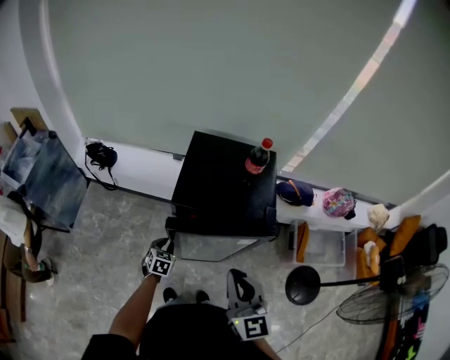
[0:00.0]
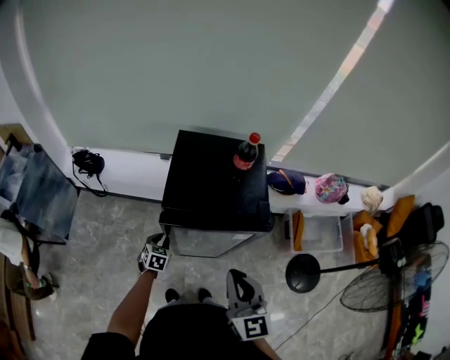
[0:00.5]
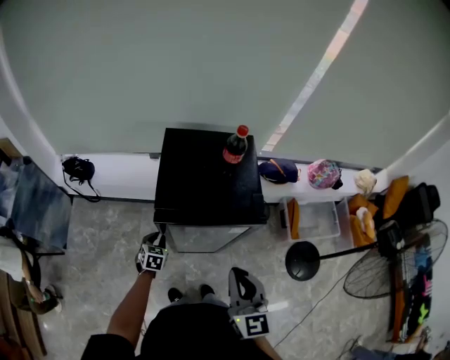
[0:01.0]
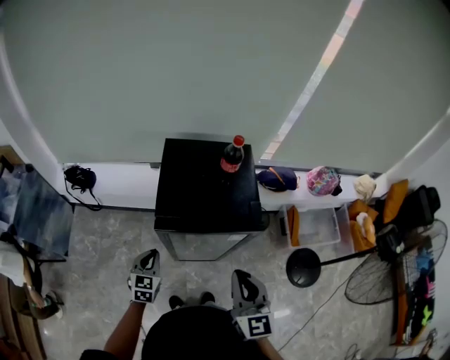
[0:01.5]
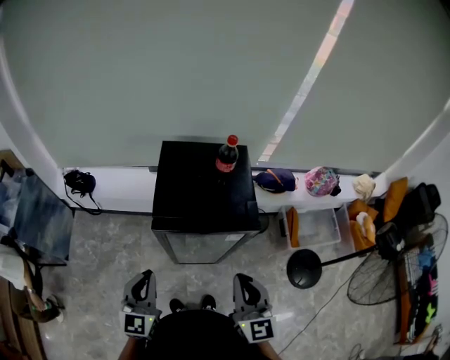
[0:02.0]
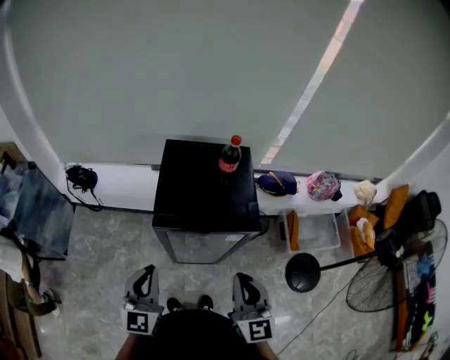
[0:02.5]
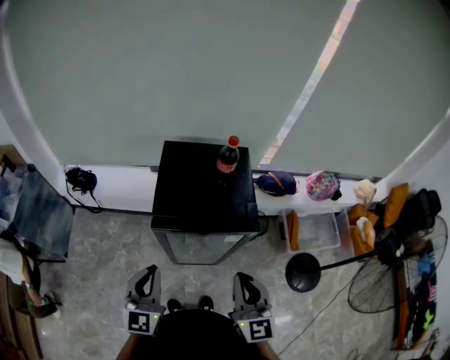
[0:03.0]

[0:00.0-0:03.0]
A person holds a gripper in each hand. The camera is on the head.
0:00.0 to 0:01.5: The left gripper travels upward by roughly 15 cm.
0:01.5 to 0:03.0: The left gripper moves upward and backward, approximately 20 cm, and changes its angle by about 20 degrees.

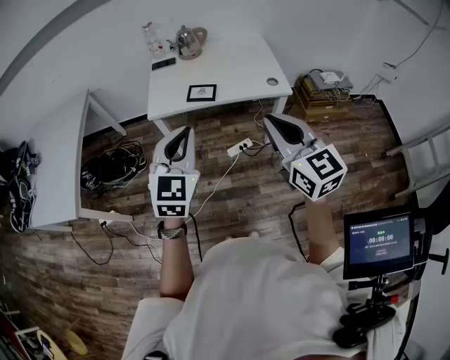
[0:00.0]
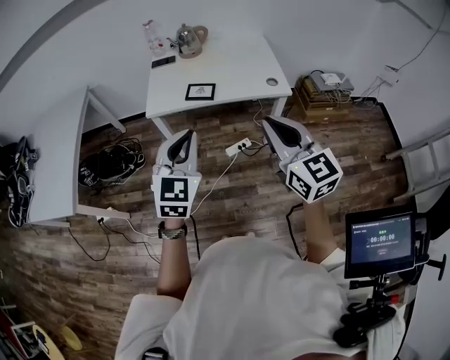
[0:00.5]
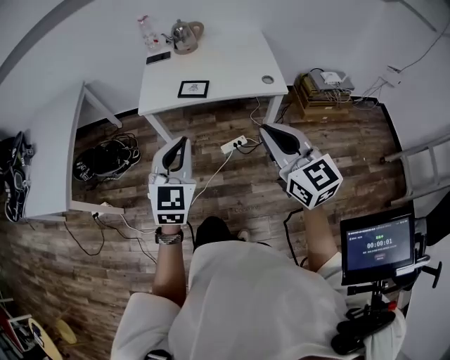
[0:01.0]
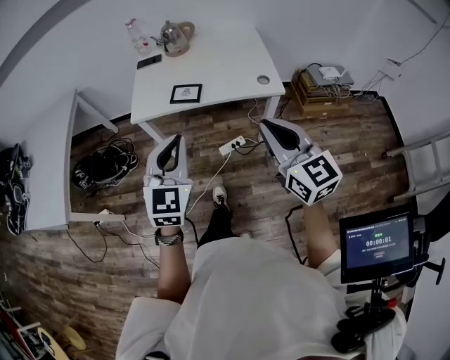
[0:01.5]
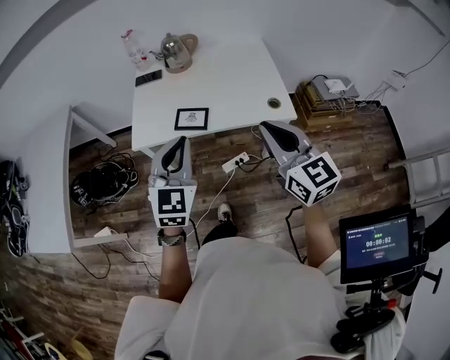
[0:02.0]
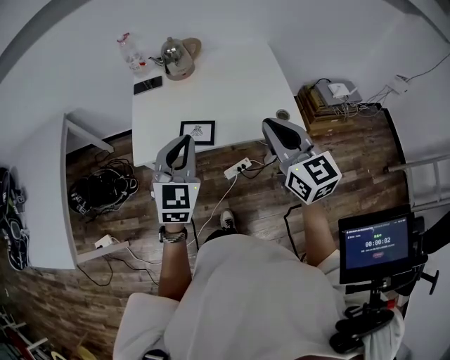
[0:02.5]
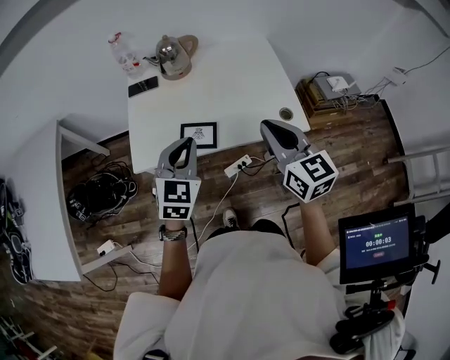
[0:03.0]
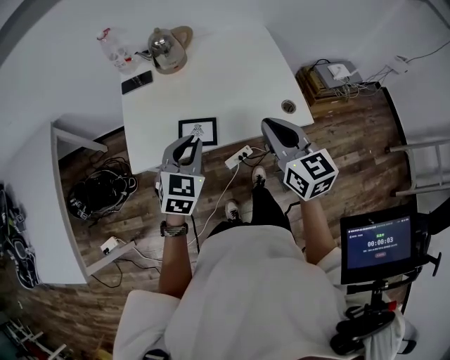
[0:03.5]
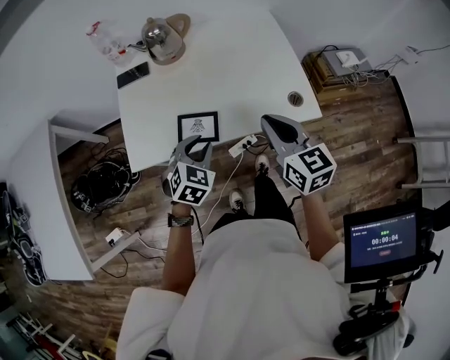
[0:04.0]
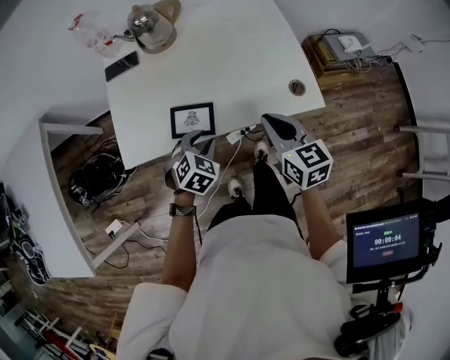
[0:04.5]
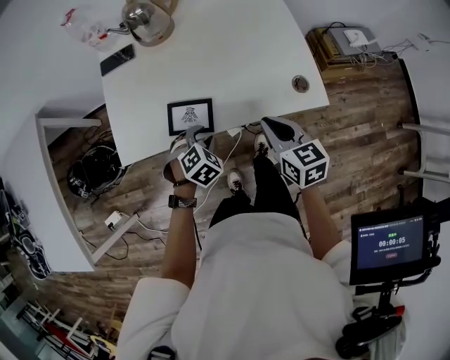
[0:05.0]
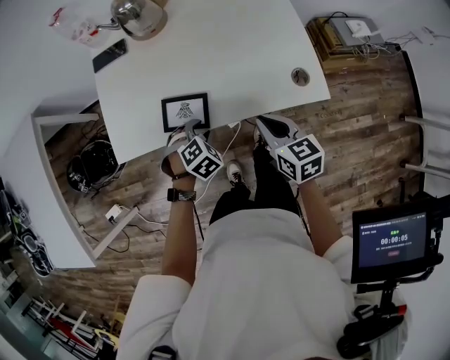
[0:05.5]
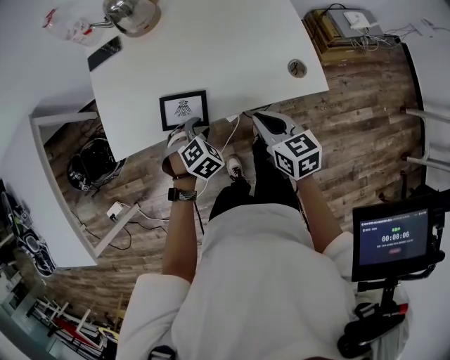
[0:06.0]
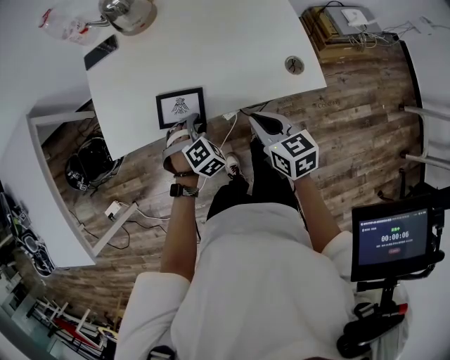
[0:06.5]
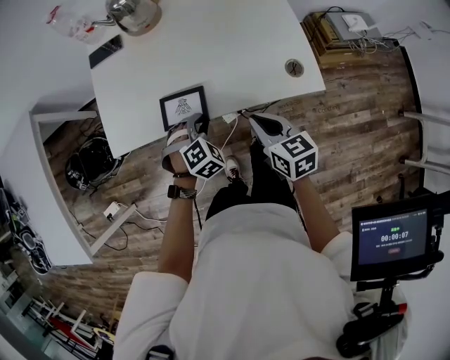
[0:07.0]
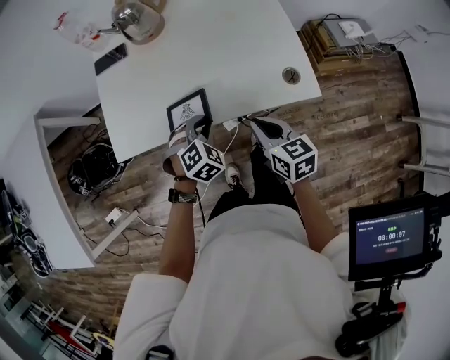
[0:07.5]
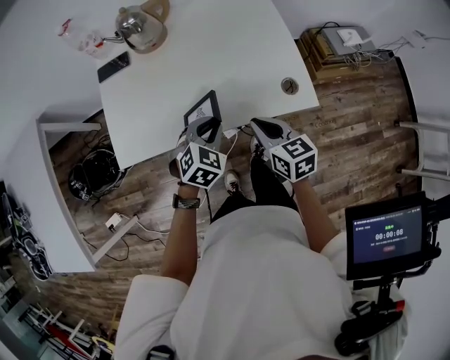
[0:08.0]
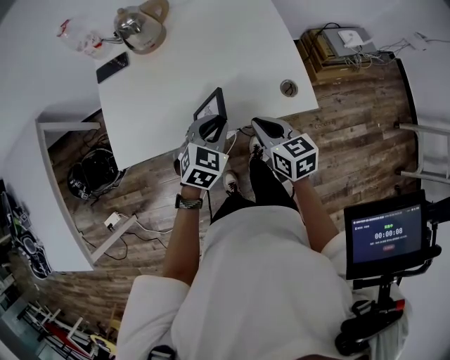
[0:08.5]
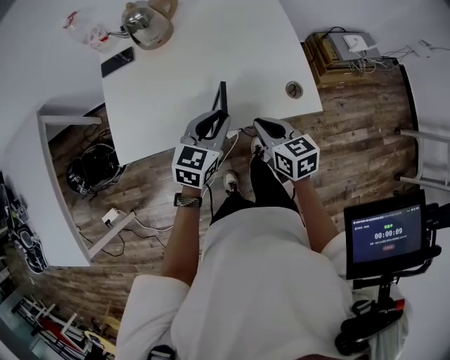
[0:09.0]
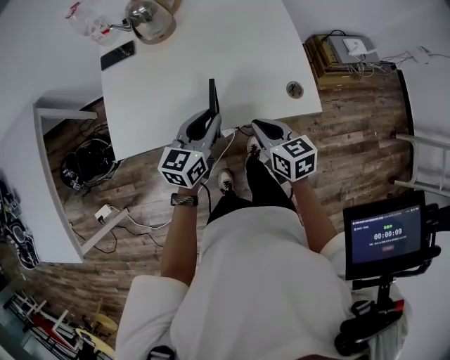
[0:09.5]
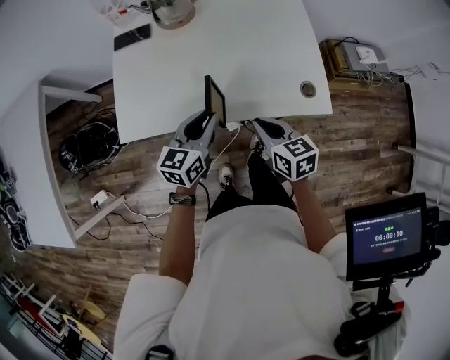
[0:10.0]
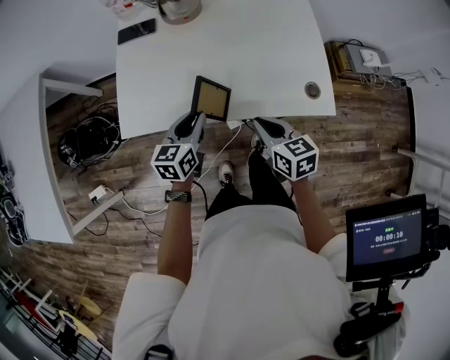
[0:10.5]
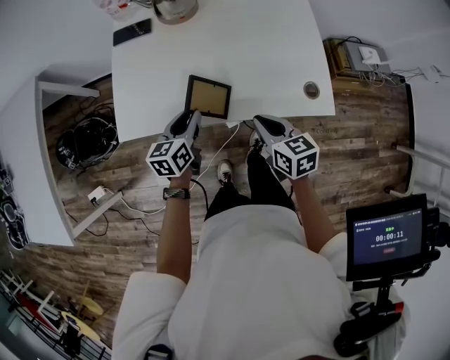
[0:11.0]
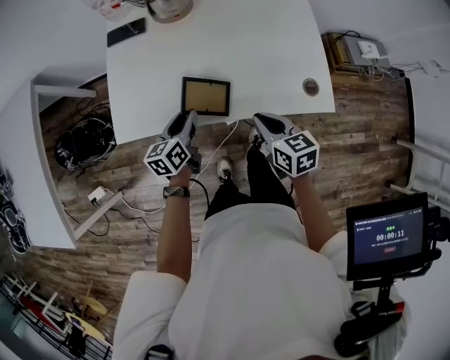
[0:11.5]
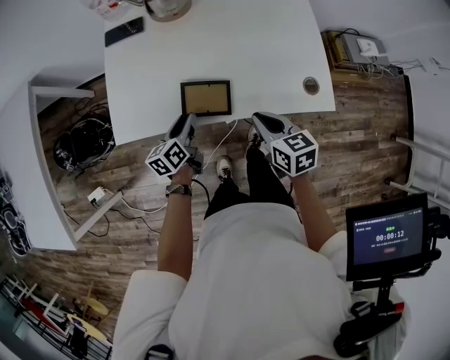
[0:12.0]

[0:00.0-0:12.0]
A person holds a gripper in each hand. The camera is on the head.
0:00.0 to 0:02.0: The two grippers go about 20 cm forward.
0:02.0 to 0:04.0: The right gripper travels forward and downward by roughly 20 cm; the left gripper heads downward and forward, covering about 25 cm, tips its fingers downward by some 30 degrees, and opens.
0:04.0 to 0:06.0: Both grippers travel together downward, some 15 cm. The right gripper rotates about 20 degrees, while the left gripper turns by about 30 degrees.
0:06.0 to 0:08.0: The left gripper moves upward and to the right, about 10 cm, and changes its angle by approximately 20 degrees.
0:08.0 to 0:10.0: The left gripper changes place by approximately 5 cm, and points its fingers roughly 30 degrees further upward.
0:10.0 to 0:12.0: The left gripper heads downward and to the left, covering approximately 15 cm, and turns by approximately 30 degrees.

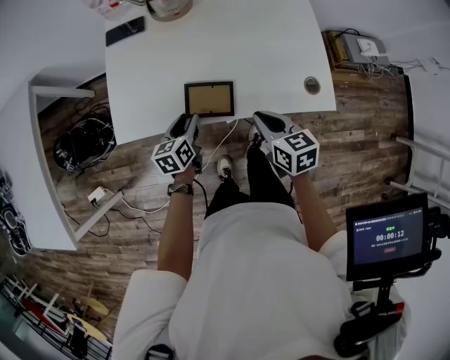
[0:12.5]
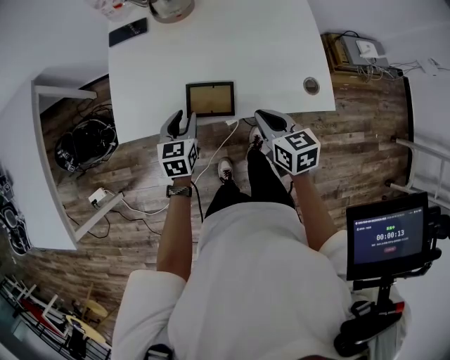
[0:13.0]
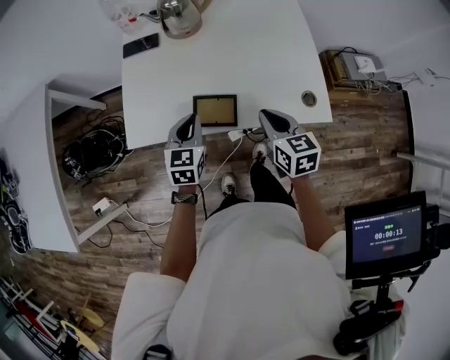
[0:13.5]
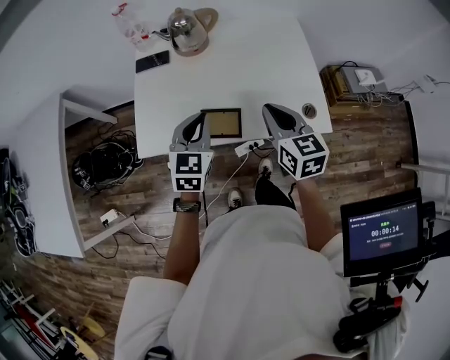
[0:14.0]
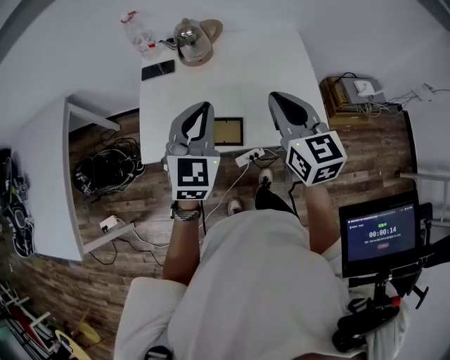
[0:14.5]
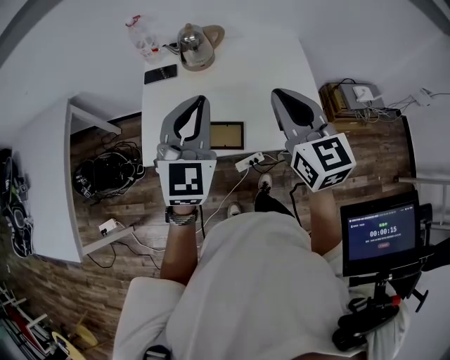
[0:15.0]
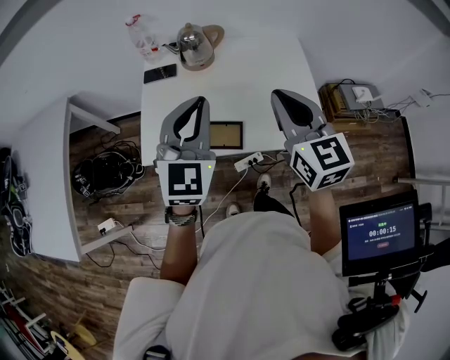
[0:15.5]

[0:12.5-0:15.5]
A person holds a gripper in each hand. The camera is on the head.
0:12.5 to 0:14.0: The right gripper moves upward and forward, roughly 15 cm. Meanwhile the left gripper goes about 20 cm upward, turns by roughly 40 degrees, and closes.
0:14.0 to 0:15.5: The two grippers go about 15 cm upward. The left gripper swivels some 20 degrees.

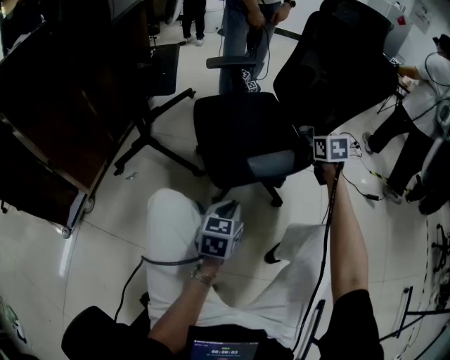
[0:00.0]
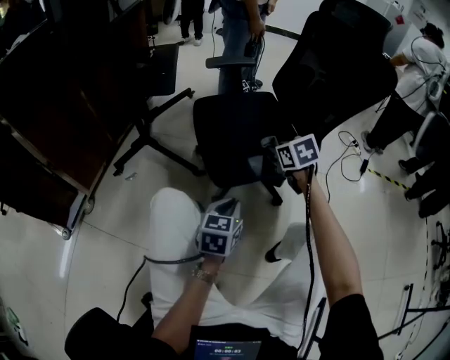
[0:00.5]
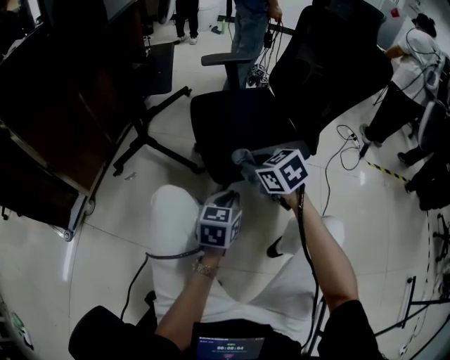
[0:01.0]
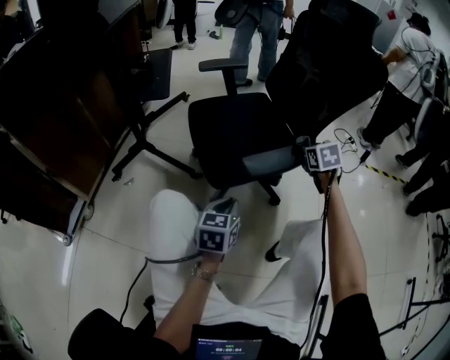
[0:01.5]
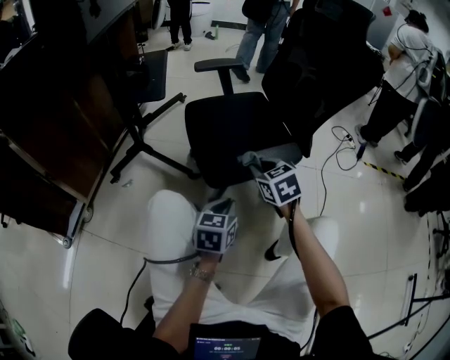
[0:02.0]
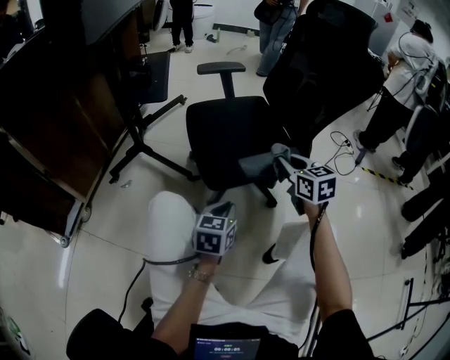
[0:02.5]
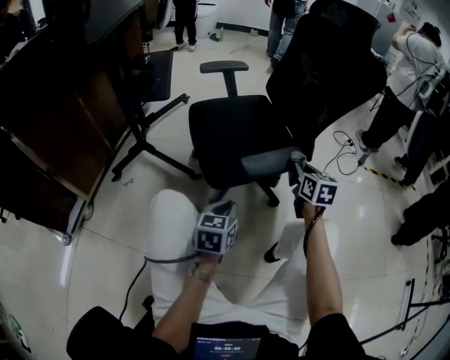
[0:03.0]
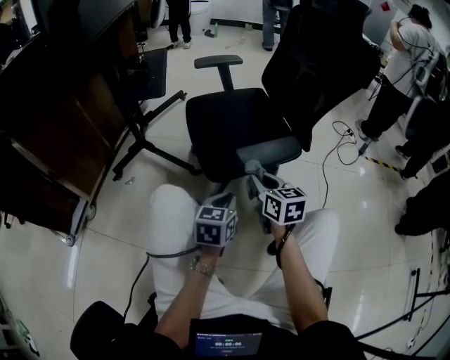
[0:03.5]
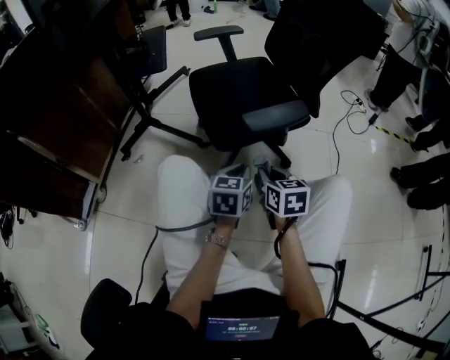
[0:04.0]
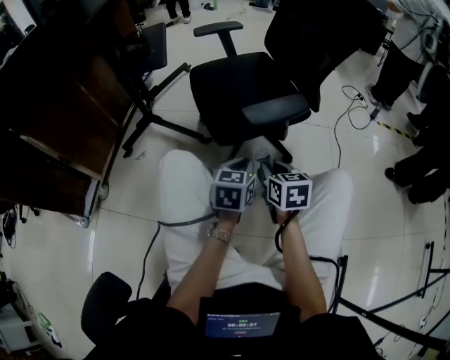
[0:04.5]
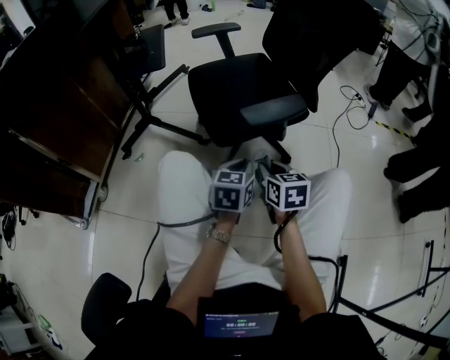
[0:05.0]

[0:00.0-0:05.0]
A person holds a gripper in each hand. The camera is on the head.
0:00.0 to 0:02.5: The right gripper swings left and right, about 25 cm each way, with 3 reversals.
0:02.5 to 0:05.0: The right gripper is displaced backward and downward by some 20 cm.

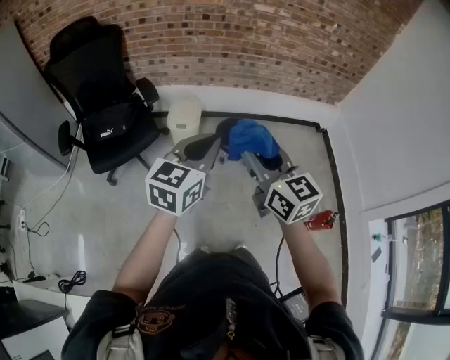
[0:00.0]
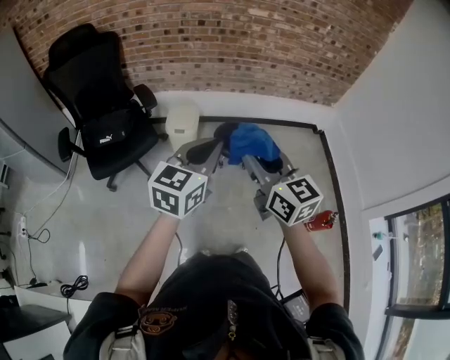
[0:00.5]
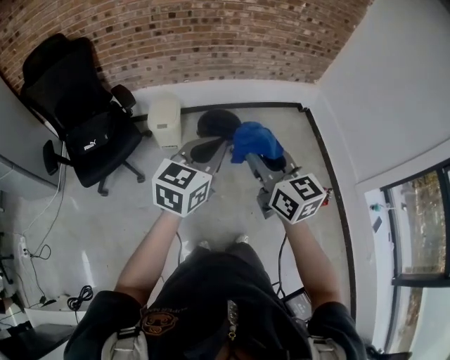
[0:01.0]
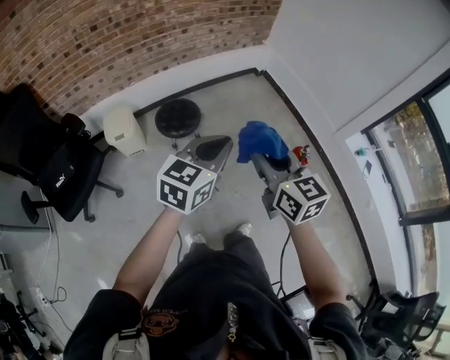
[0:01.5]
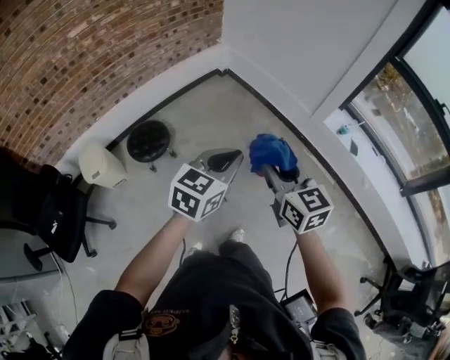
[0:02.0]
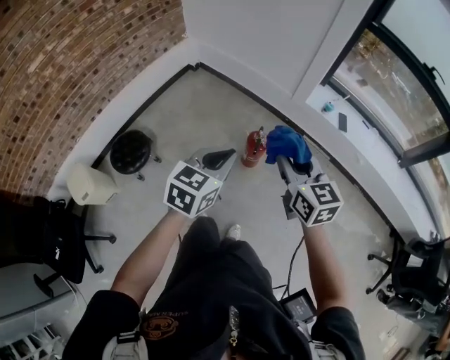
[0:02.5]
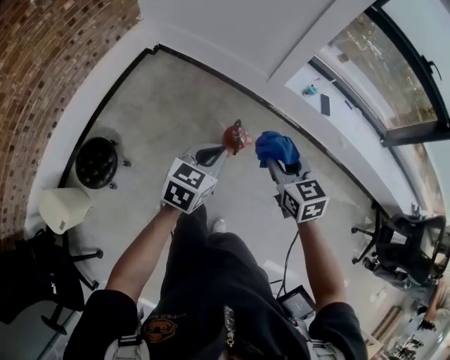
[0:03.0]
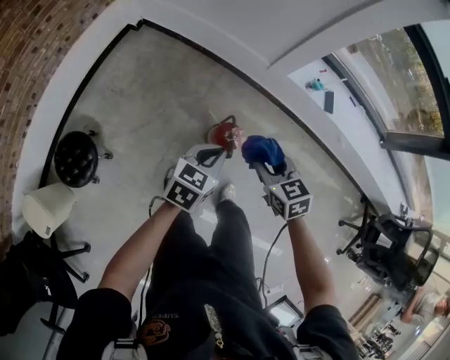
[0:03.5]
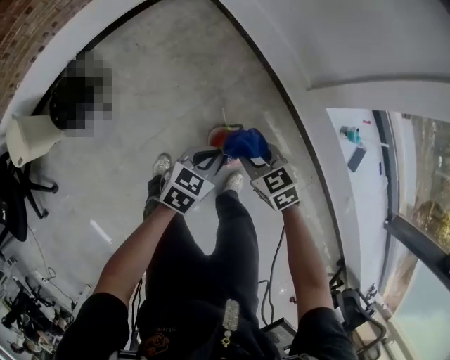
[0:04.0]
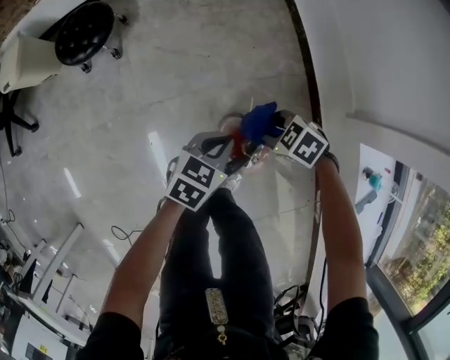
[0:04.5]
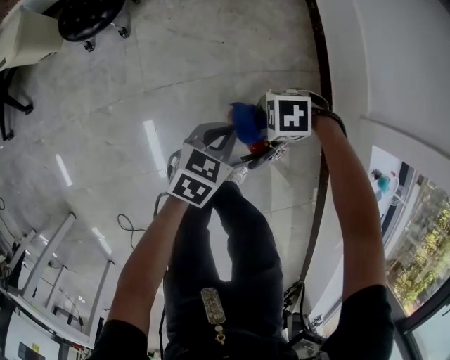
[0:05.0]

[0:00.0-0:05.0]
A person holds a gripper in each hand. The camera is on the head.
0:00.0 to 0:02.5: The pair of grippers is taken some 60 cm. The left gripper rotates about 60 degrees. Meanwhile the right gripper changes its angle by approximately 60 degrees.
0:02.5 to 0:05.0: The two grippers go about 50 cm downward. The right gripper tilts its fingers roughly 40 degrees downward. Meanwhile the left gripper changes its angle by approximately 40 degrees.
